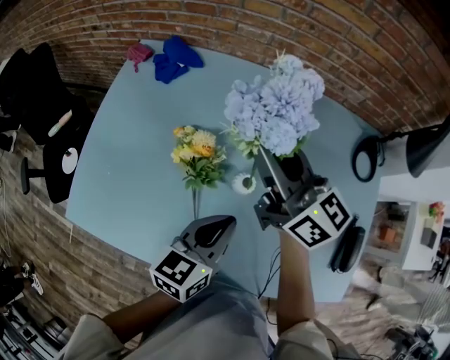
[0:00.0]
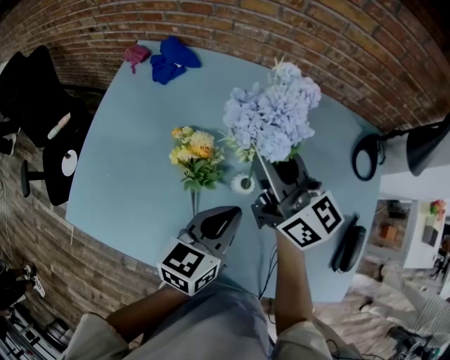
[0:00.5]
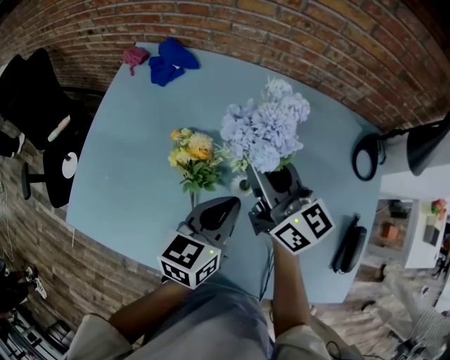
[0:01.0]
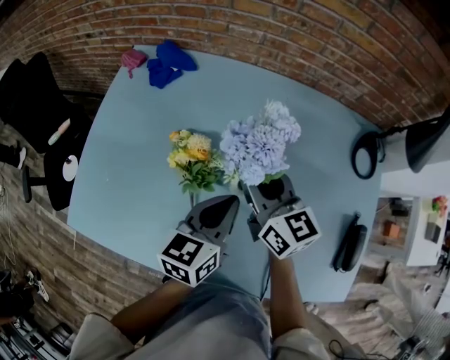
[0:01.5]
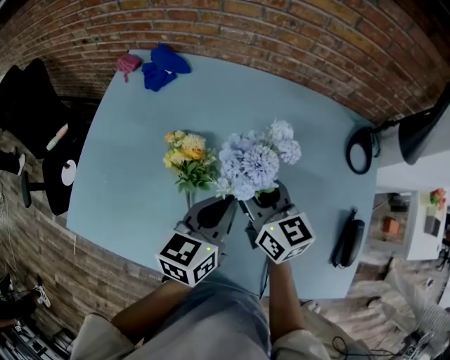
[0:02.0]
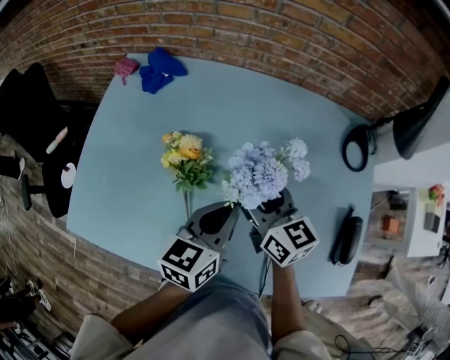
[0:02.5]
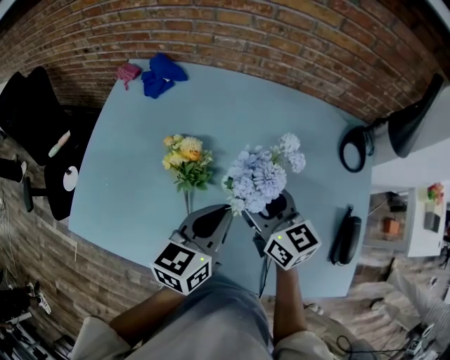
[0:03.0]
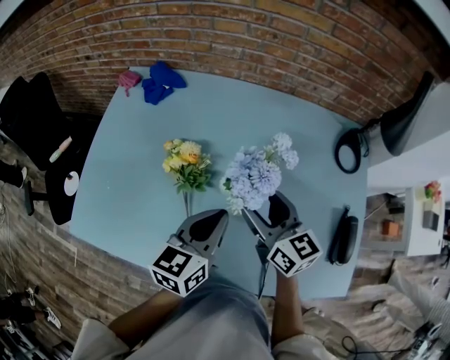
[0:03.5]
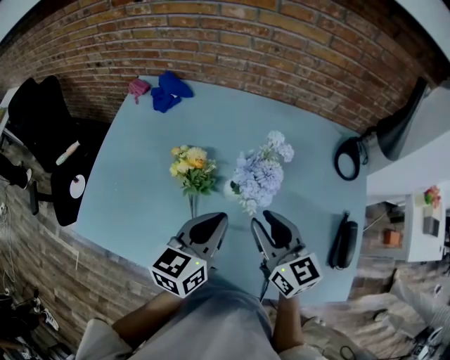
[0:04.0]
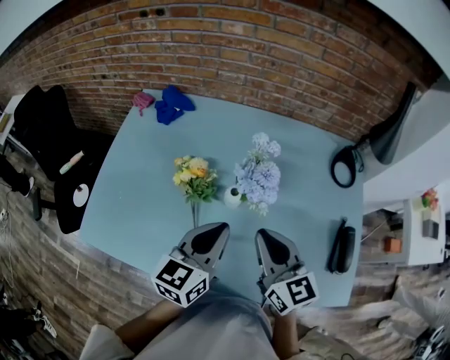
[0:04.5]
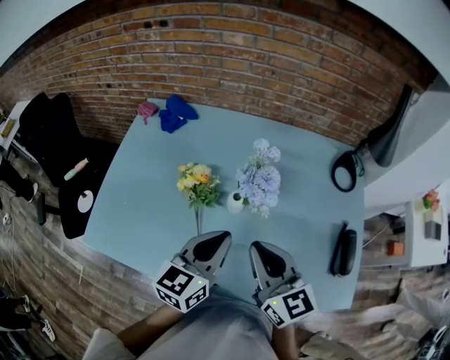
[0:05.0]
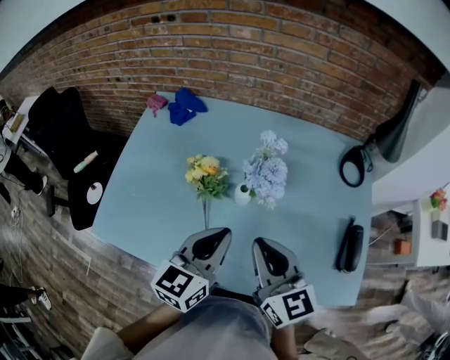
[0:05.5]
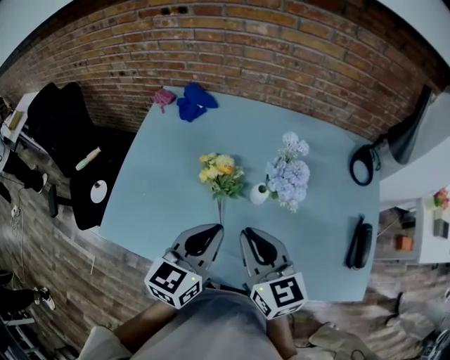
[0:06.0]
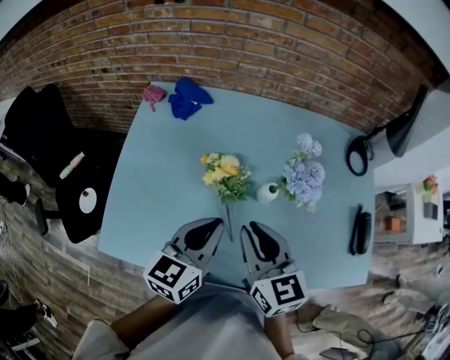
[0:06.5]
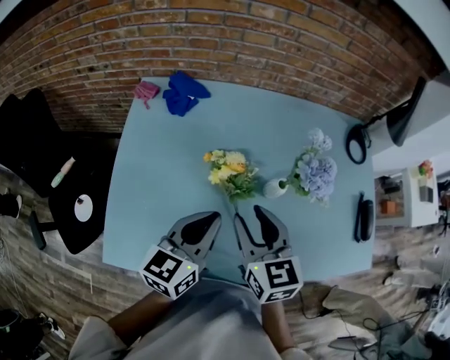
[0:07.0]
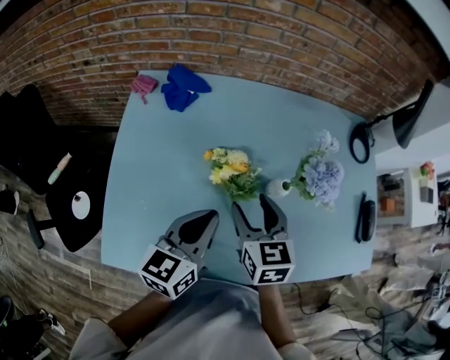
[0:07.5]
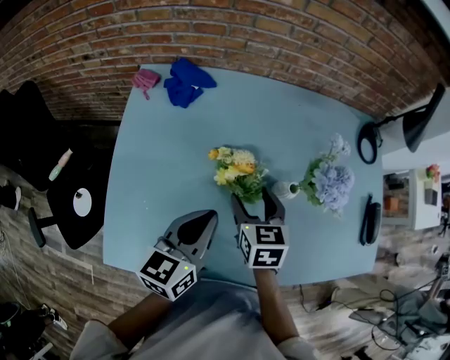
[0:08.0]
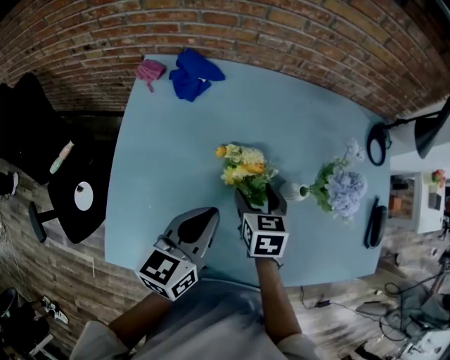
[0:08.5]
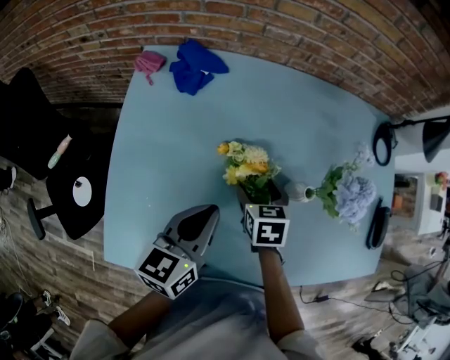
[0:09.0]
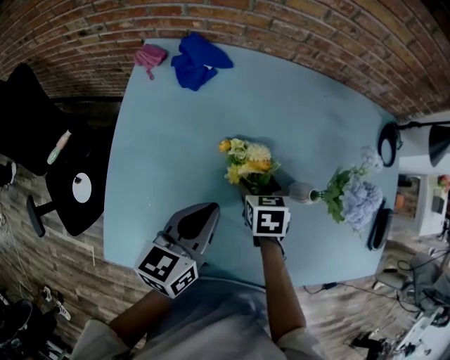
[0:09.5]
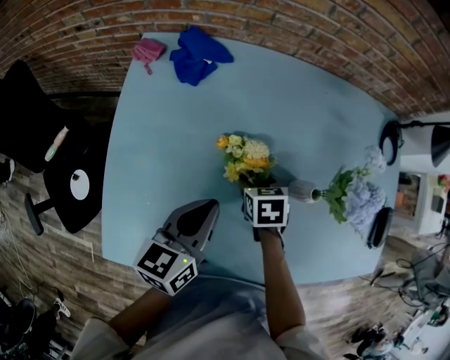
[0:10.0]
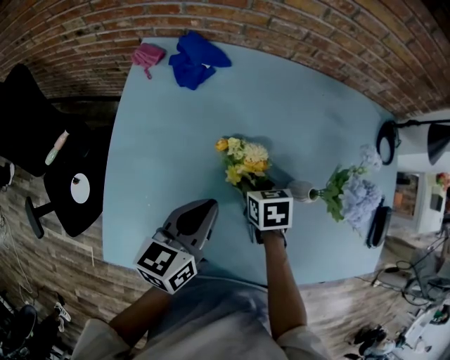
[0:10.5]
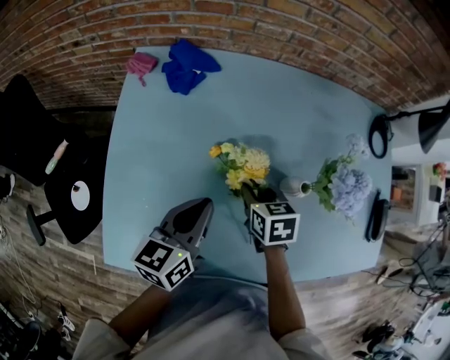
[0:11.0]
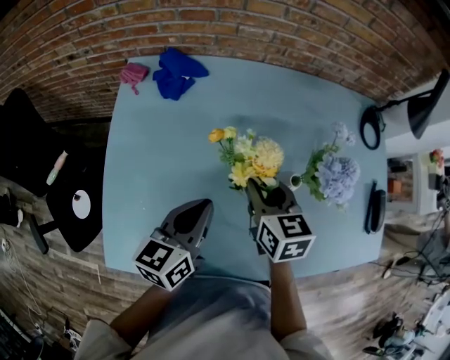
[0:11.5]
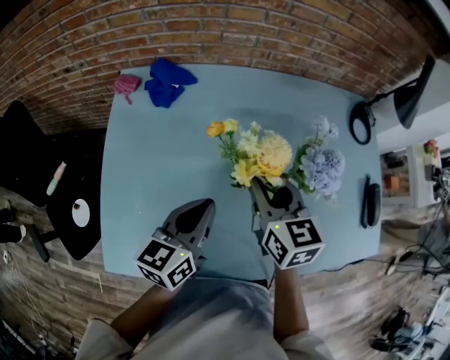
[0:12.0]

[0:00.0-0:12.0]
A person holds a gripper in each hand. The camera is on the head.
0.0 to 2.0 s: The right gripper is displaced downward by some 10 cm, and changes its angle by some 20 degrees.
2.0 to 4.0 s: The right gripper travels backward and to the right by about 10 cm. The left gripper travels backward by about 5 cm.
4.0 to 6.0 s: The grippers both shift to the left by some 10 cm.
6.0 to 8.0 s: The right gripper travels downward, forward and to the left by approximately 20 cm, changes its angle by roughly 30 degrees, and opens, while the left gripper is displaced to the left, forward and downward by roughly 15 cm.
8.0 to 10.0 s: The left gripper shifts about 5 cm downward. Meanwhile the right gripper shifts some 15 cm downward, and swivels about 20 degrees.
10.0 to 12.0 s: The left gripper heads to the right, covering about 5 cm. Meanwhile the right gripper moves upward, some 20 cm, and tips its fingers upward by approximately 40 degrees.

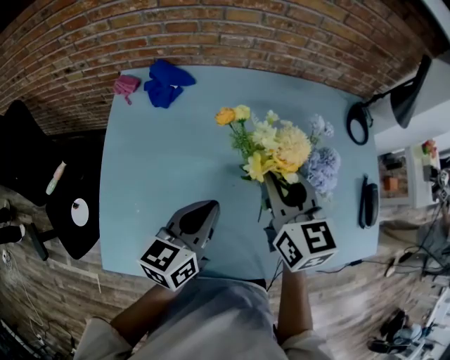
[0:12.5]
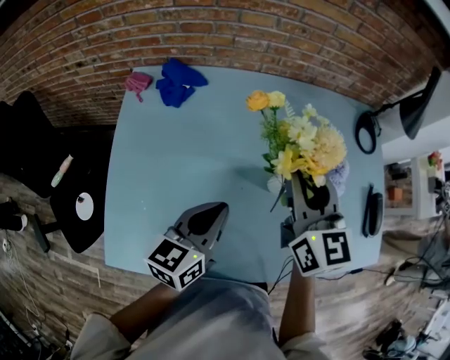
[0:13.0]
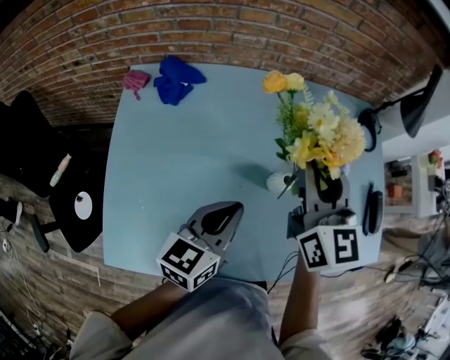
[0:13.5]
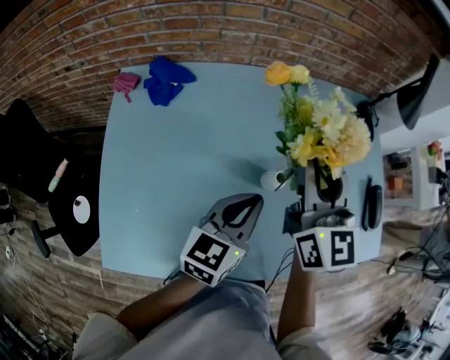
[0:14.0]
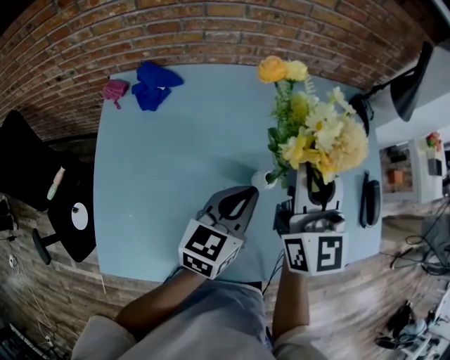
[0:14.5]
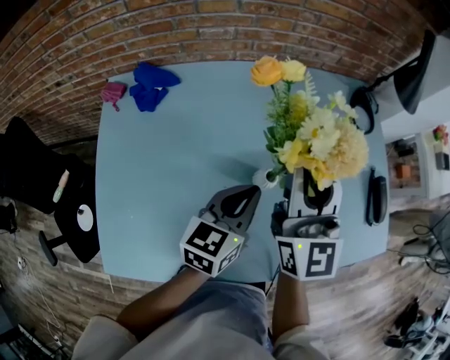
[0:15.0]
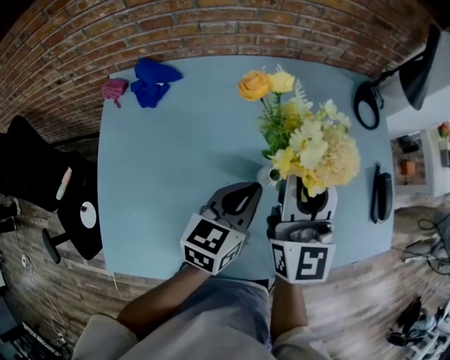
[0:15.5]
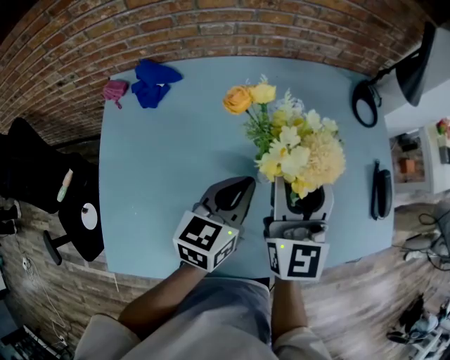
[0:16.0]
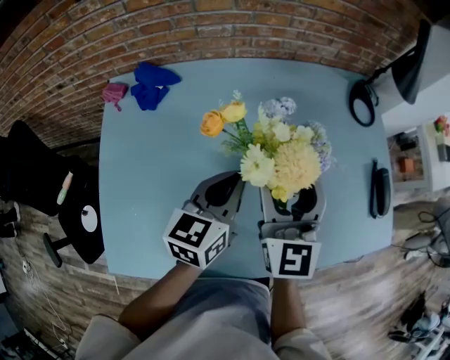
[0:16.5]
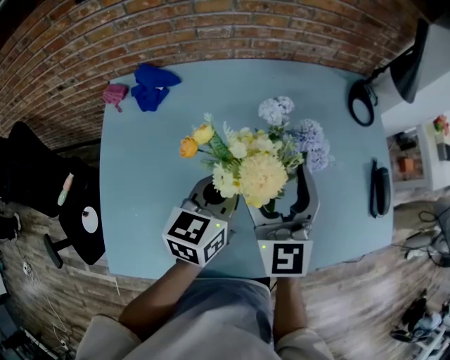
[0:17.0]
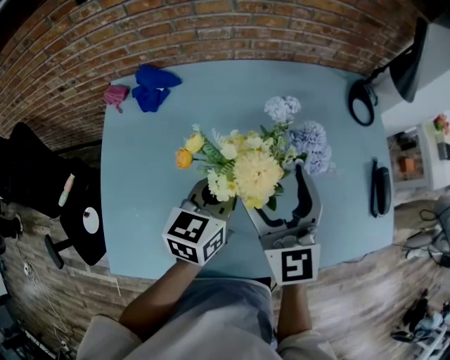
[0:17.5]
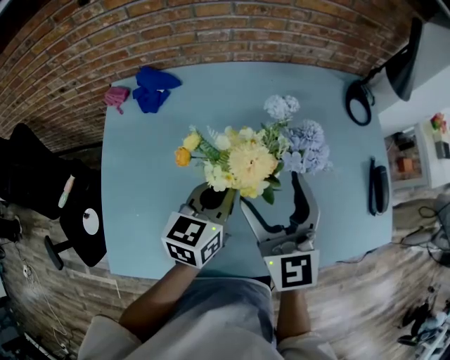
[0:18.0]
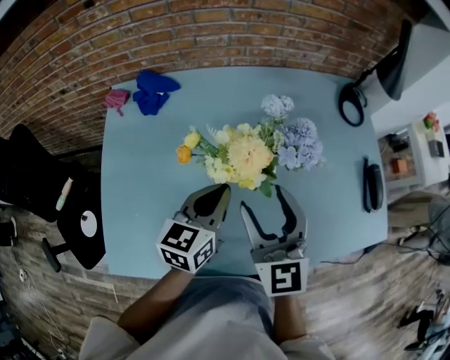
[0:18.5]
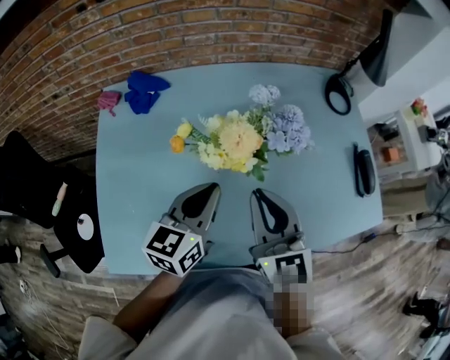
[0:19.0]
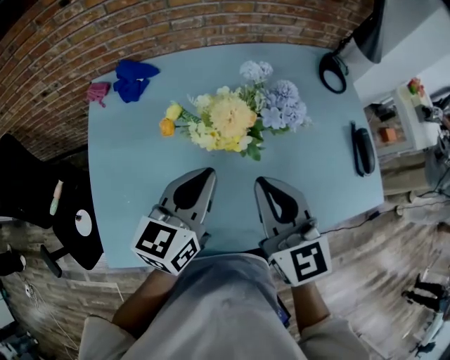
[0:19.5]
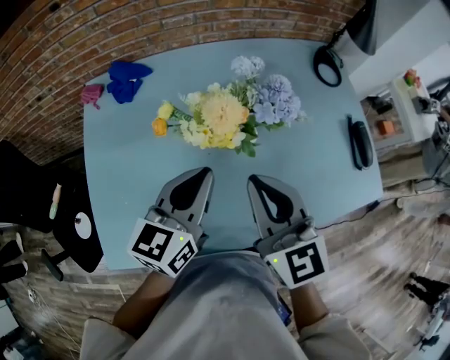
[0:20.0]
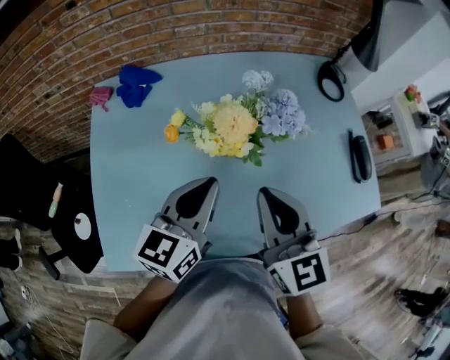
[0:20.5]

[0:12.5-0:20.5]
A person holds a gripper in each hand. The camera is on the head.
12.5 to 14.5 s: The left gripper goes roughly 15 cm to the right and forward. The right gripper goes some 10 cm upward and to the right, and turns by some 30 degrees.
14.5 to 16.5 s: The right gripper goes approximately 5 cm downward, and opens up.
16.5 to 18.5 s: The right gripper travels backward by approximately 10 cm; the left gripper changes place by some 5 cm.
18.5 to 20.5 s: The left gripper heads upward and backward, covering some 10 cm; the right gripper goes approximately 5 cm backward, and closes up.

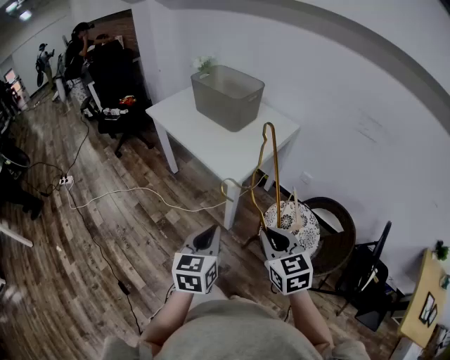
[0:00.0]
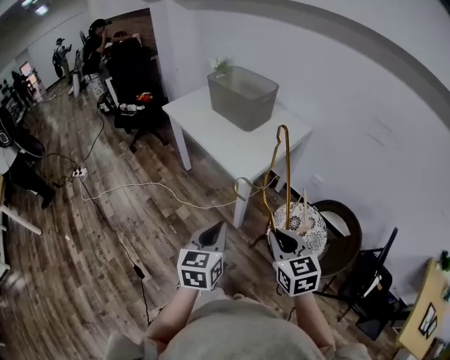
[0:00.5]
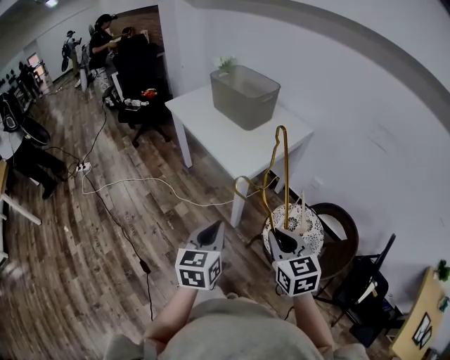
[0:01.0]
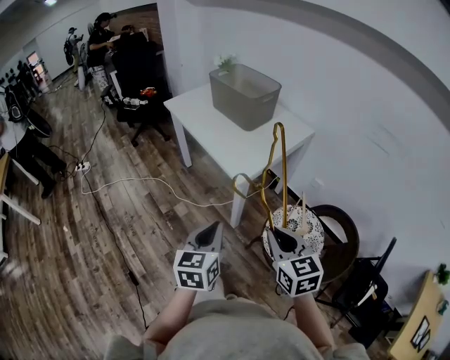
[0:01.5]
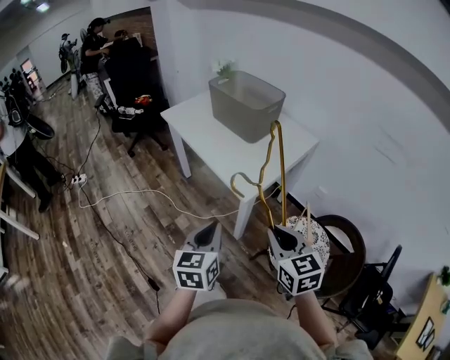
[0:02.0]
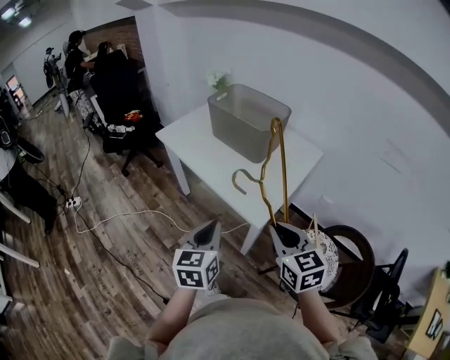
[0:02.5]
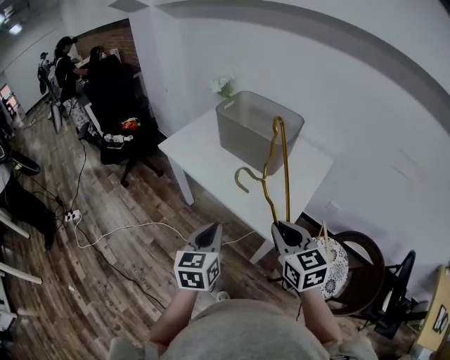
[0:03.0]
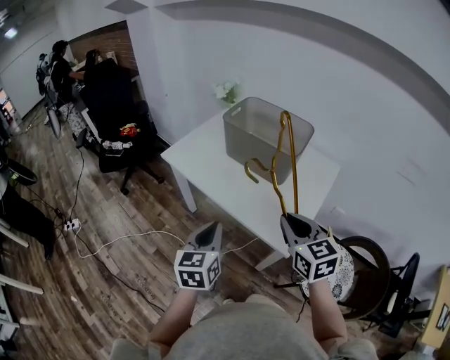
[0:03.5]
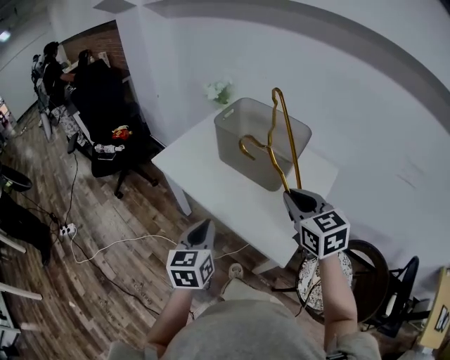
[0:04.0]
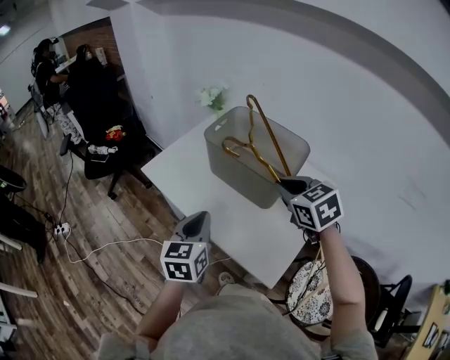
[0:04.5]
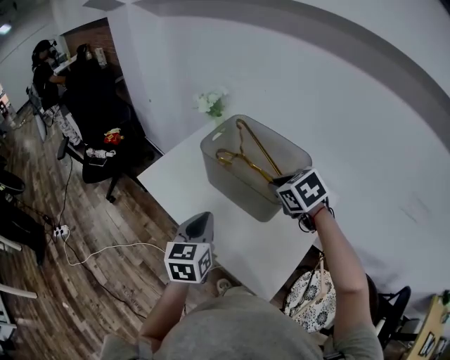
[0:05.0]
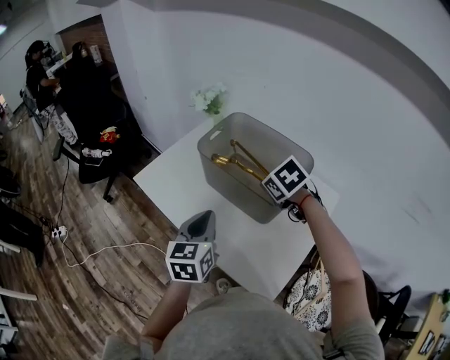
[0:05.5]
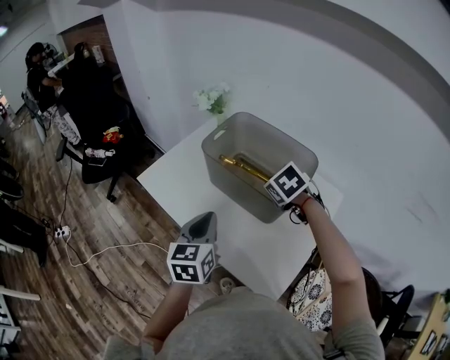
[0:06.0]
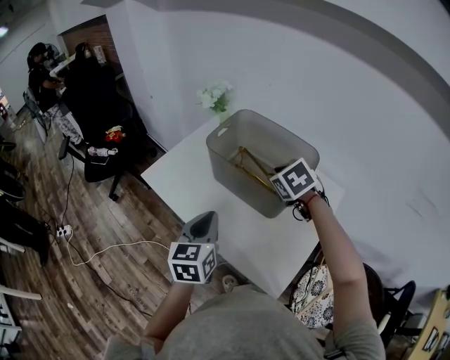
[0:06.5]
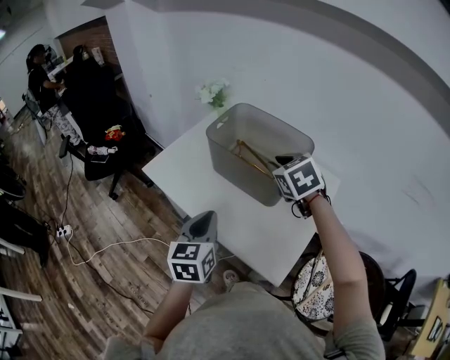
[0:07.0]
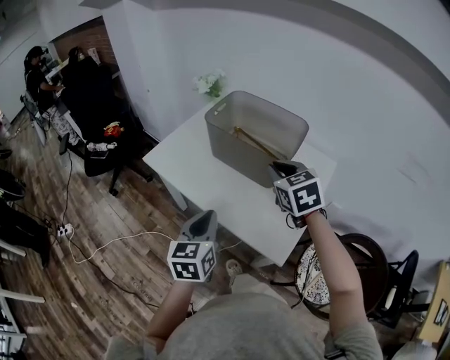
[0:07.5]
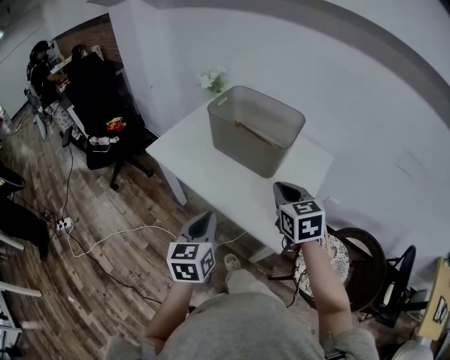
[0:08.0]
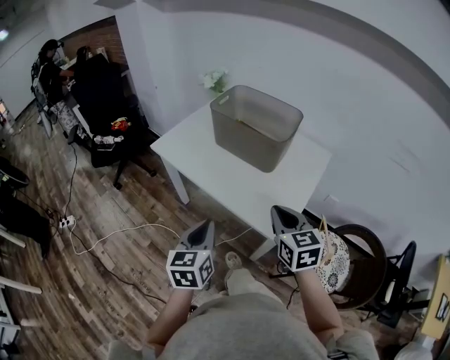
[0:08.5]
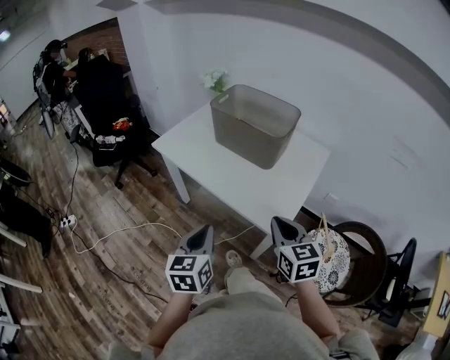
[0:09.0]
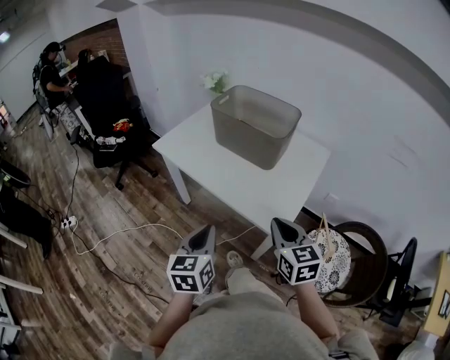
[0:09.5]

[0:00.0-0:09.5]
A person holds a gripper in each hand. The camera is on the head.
0.0 to 2.0 s: The grippers both shift forward by about 5 cm.
2.0 to 4.0 s: The right gripper shifts some 35 cm forward. The left gripper moves forward and to the left, about 35 cm.
4.0 to 5.5 s: The right gripper goes some 25 cm forward and downward, and angles its fingers downward, by some 40 degrees. The left gripper goes some 20 cm forward and to the right.
5.5 to 7.5 s: The left gripper heads backward, covering some 15 cm; the right gripper goes some 15 cm backward and upward, and turns by roughly 30 degrees.
7.5 to 9.5 s: The left gripper moves backward, some 15 cm. Meanwhile the right gripper shifts approximately 25 cm backward.
